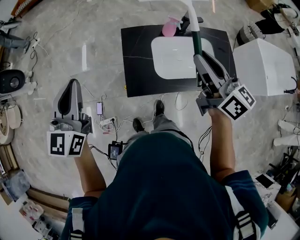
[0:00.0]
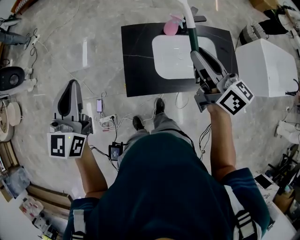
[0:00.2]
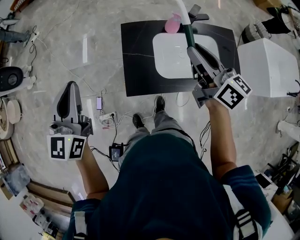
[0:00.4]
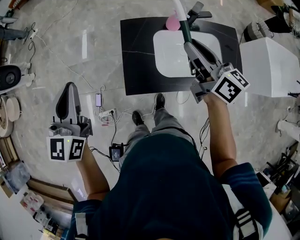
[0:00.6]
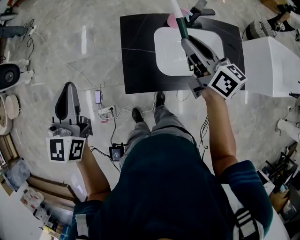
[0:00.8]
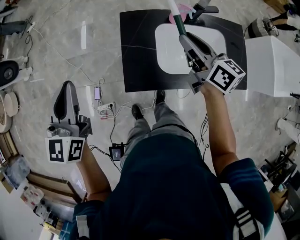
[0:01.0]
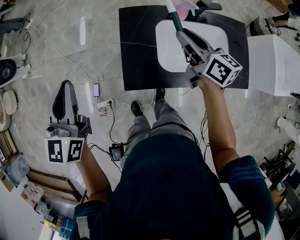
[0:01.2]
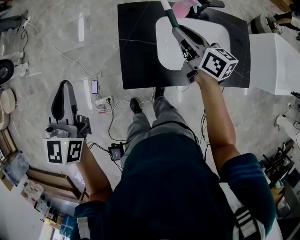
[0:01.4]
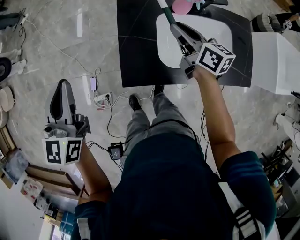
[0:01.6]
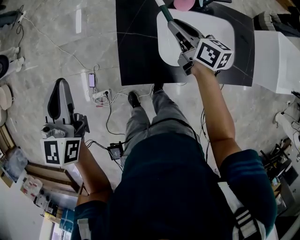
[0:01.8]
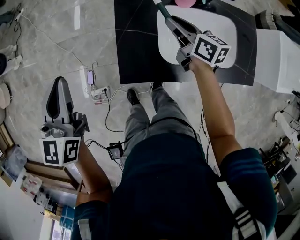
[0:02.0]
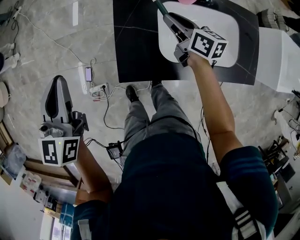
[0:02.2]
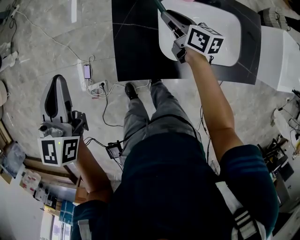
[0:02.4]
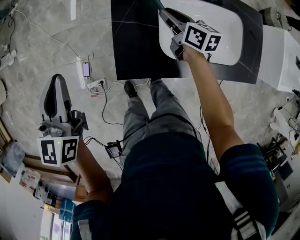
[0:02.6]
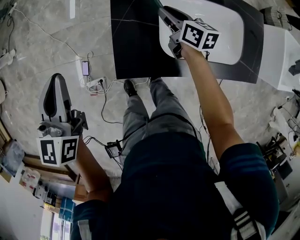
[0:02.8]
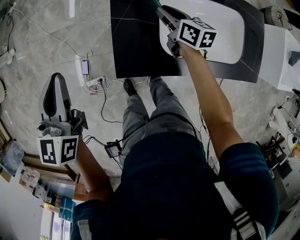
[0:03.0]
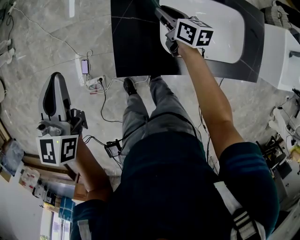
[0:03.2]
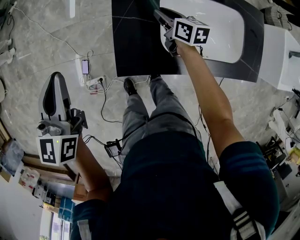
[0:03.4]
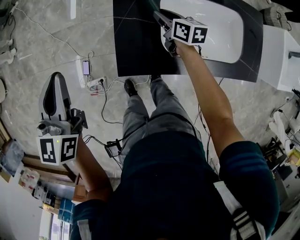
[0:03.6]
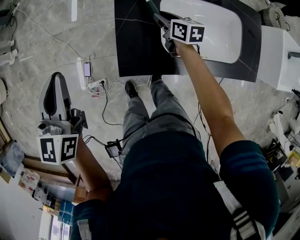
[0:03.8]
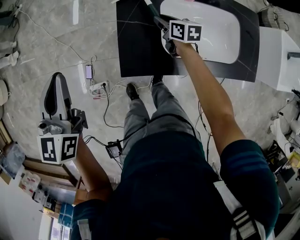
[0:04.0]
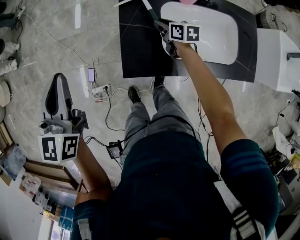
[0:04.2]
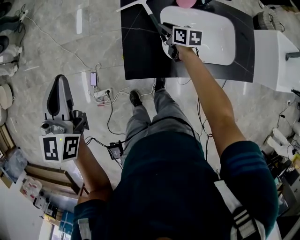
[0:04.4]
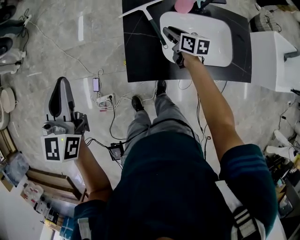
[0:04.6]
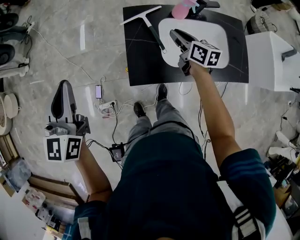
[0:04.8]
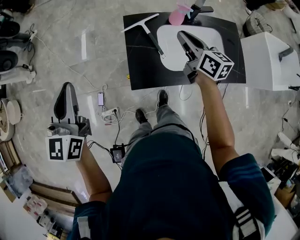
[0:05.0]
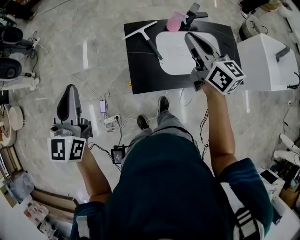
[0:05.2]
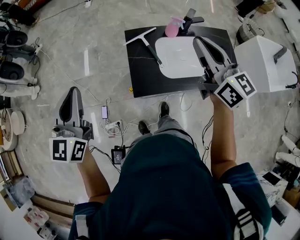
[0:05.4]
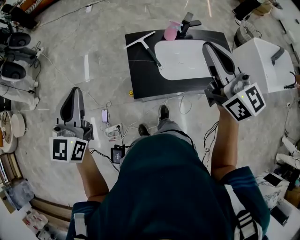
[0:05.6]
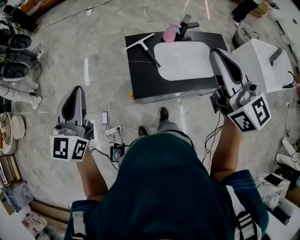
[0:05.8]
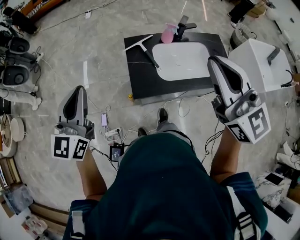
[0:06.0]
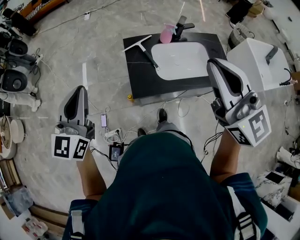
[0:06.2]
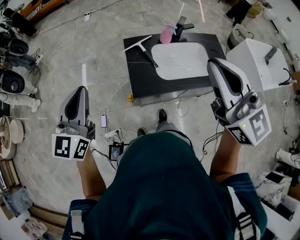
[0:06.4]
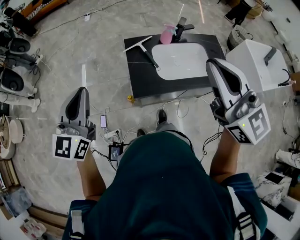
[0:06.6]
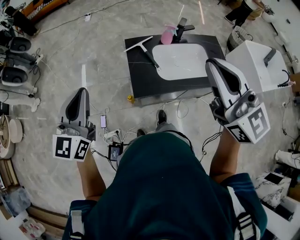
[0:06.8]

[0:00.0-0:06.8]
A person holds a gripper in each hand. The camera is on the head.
0:00.0 to 0:01.4: The right gripper travels downward and forward by about 25 cm; the left gripper travels downward by some 5 cm.
0:01.4 to 0:02.8: The left gripper moves downward, approximately 5 cm. Meanwhile the right gripper heads downward, covering about 15 cm.
0:02.8 to 0:04.0: The right gripper travels downward by some 5 cm.
0:04.0 to 0:05.4: The left gripper moves upward and backward, about 15 cm. Meanwhile the right gripper heads upward, covering about 40 cm, and points its fingers approximately 40 degrees further upward.
0:05.4 to 0:06.8: The left gripper shifts approximately 5 cm backward. The right gripper goes approximately 20 cm backward and upward, and swivels about 20 degrees.

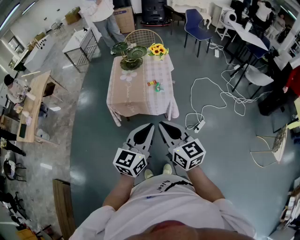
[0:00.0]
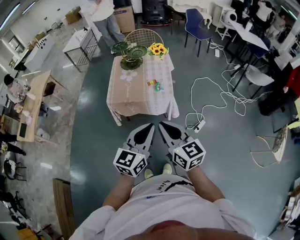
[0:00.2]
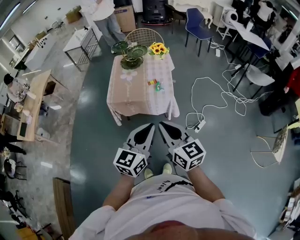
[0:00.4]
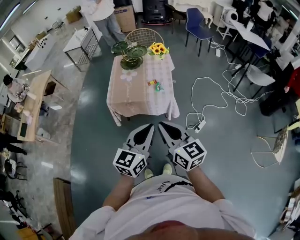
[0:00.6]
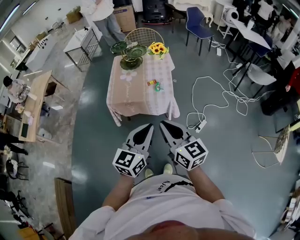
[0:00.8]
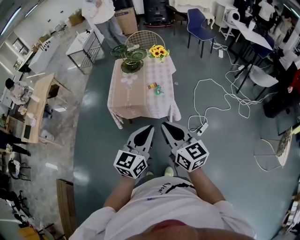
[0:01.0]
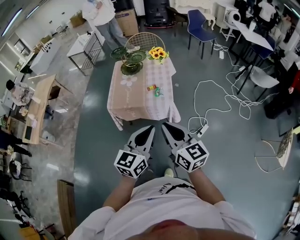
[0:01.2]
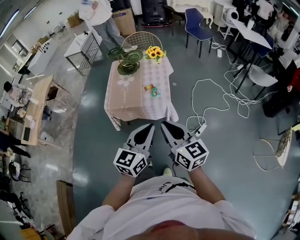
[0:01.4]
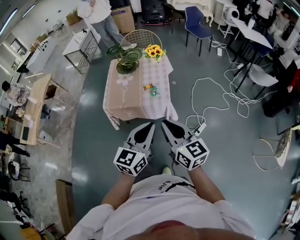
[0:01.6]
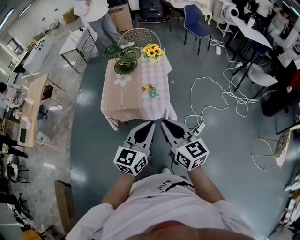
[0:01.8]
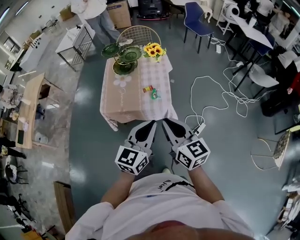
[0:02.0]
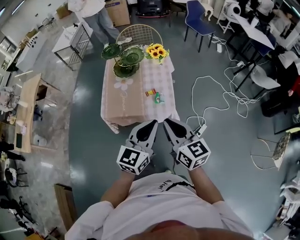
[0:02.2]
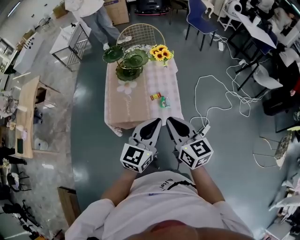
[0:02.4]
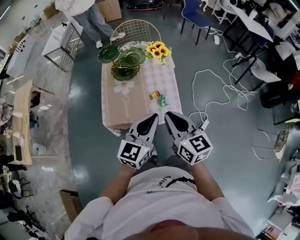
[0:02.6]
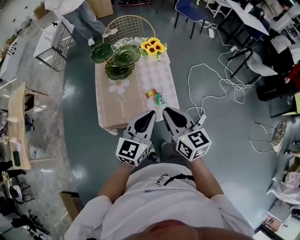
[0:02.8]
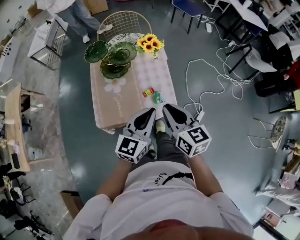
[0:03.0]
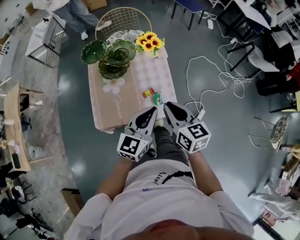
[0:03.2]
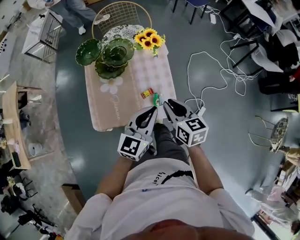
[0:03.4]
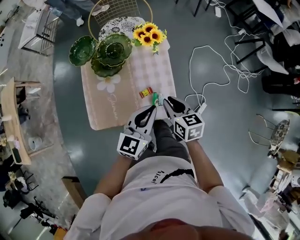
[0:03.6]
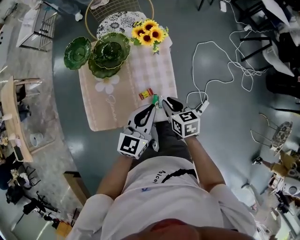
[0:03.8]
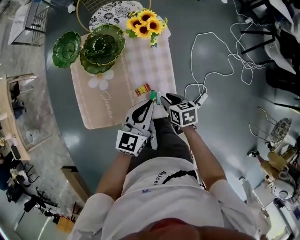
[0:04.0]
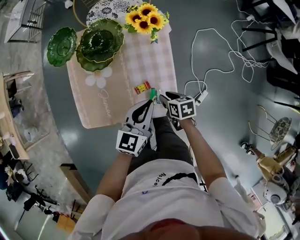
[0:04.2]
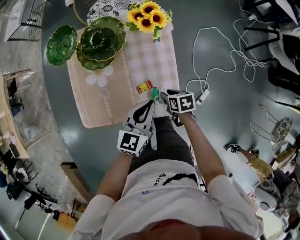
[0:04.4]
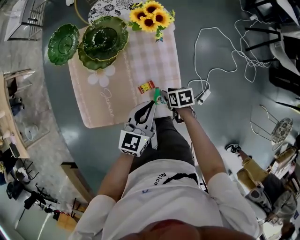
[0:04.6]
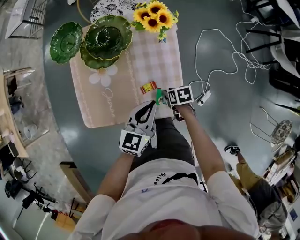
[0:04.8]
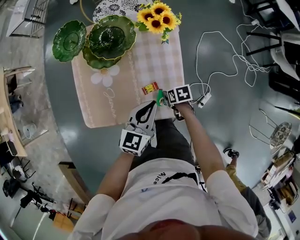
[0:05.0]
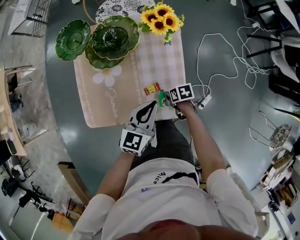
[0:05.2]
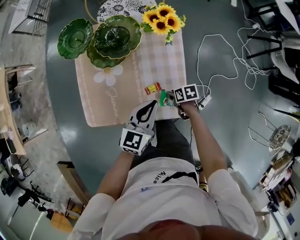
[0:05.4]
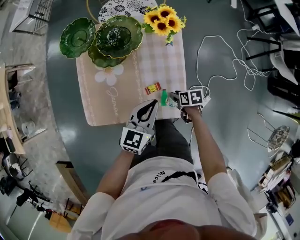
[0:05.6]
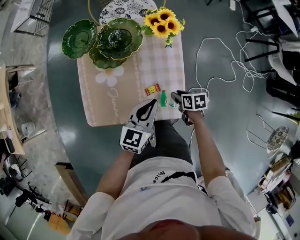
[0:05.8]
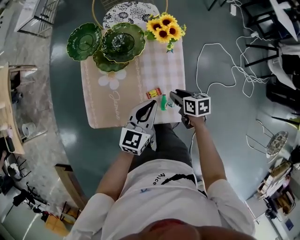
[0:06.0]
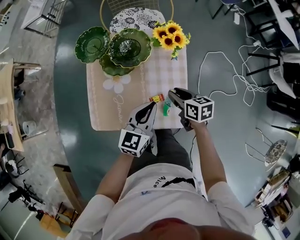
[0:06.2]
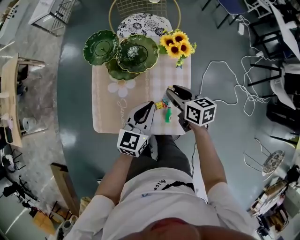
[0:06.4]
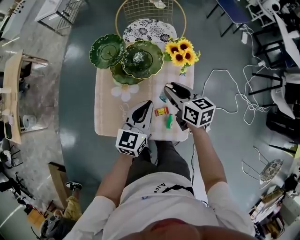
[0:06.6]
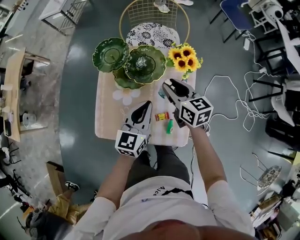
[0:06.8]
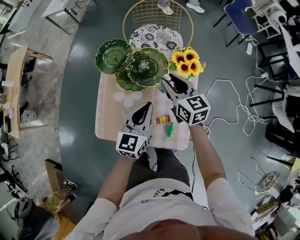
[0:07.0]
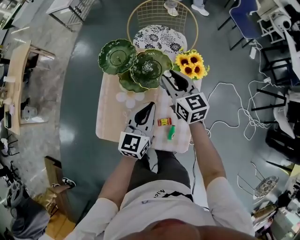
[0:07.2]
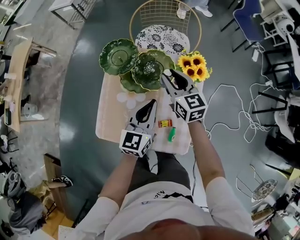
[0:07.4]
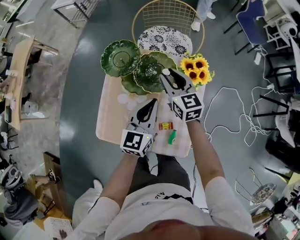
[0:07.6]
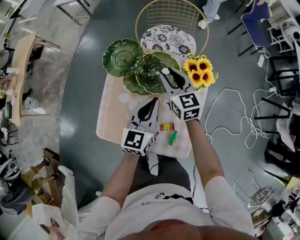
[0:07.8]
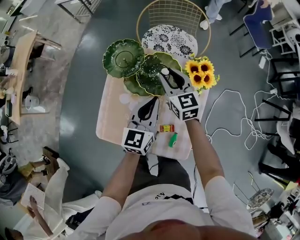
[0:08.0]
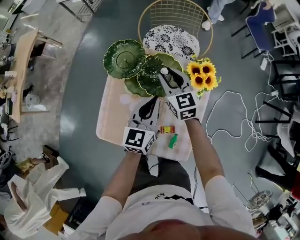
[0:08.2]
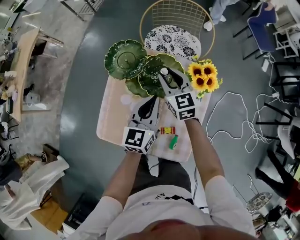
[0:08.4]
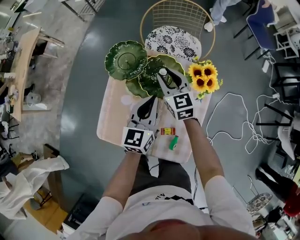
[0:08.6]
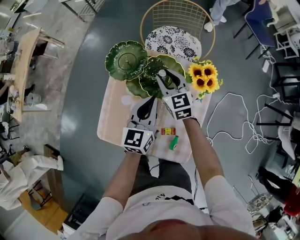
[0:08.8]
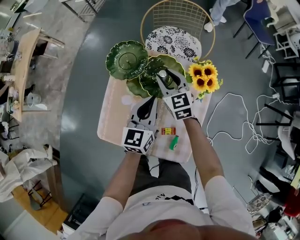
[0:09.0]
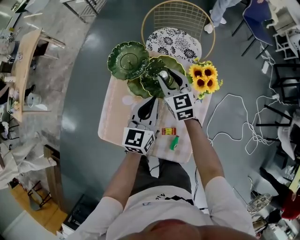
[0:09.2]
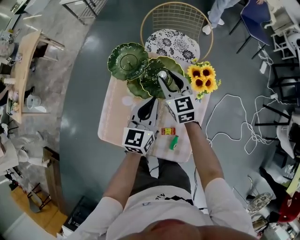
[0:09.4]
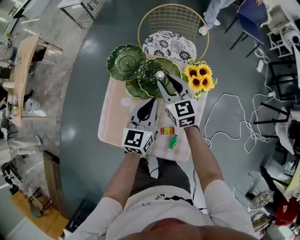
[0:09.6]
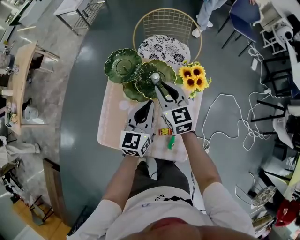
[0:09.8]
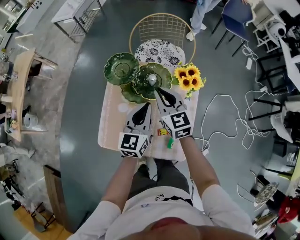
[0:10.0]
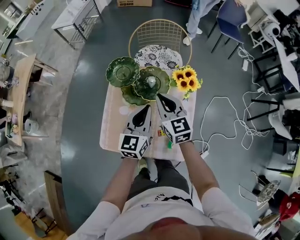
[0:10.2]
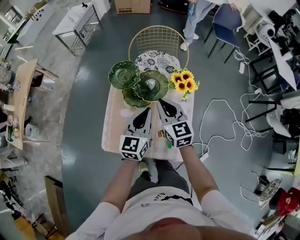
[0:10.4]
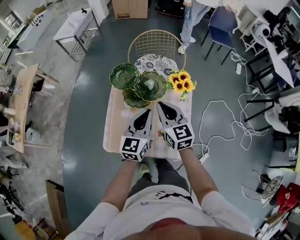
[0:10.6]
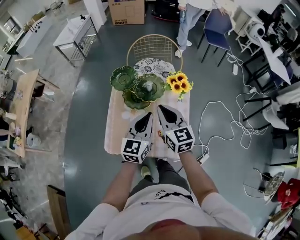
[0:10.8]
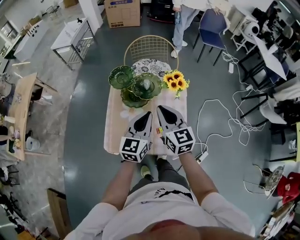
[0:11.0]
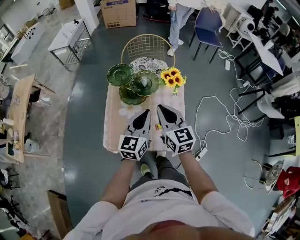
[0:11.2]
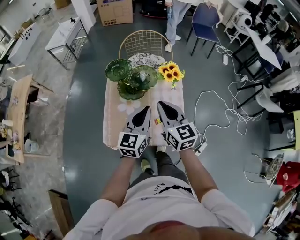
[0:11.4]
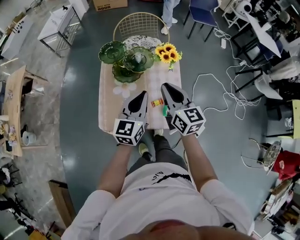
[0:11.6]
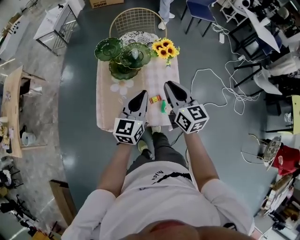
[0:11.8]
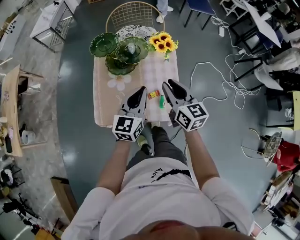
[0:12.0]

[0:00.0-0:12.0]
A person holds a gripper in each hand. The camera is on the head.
0:00.0 to 0:01.6: The grippers both shift to the right and forward by roughly 10 cm.
0:01.6 to 0:03.0: The grippers both shift forward by some 30 cm.
0:03.0 to 0:04.4: The left gripper goes approximately 25 cm downward and forward, while the right gripper goes about 40 cm downward, tips its fingers downward by about 40 degrees, and opens.
0:04.4 to 0:06.0: The left gripper changes place by some 5 cm, while the right gripper heads upward and forward, covering about 10 cm.
0:06.0 to 0:07.6: The left gripper travels forward and to the left by roughly 15 cm, and swivels approximately 20 degrees. The right gripper moves forward, upward and to the left, some 35 cm, and tips its fingers upward by approximately 30 degrees.
0:07.6 to 0:09.0: The left gripper changes place by some 5 cm. Meanwhile the right gripper shifts by roughly 5 cm.
0:09.0 to 0:10.4: The left gripper travels upward and backward by roughly 10 cm, while the right gripper moves backward and upward, some 20 cm, and closes.
0:10.4 to 0:12.0: The right gripper heads backward and to the right, covering about 20 cm; the left gripper goes about 10 cm backward.

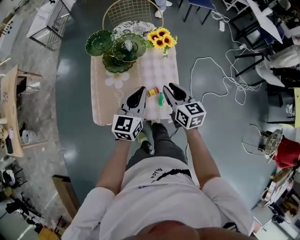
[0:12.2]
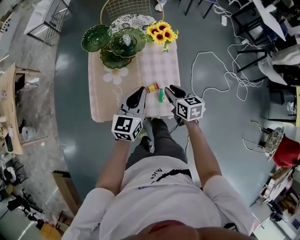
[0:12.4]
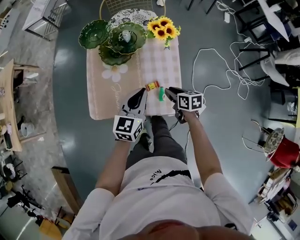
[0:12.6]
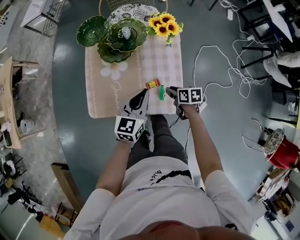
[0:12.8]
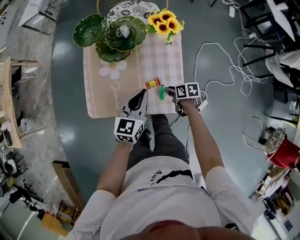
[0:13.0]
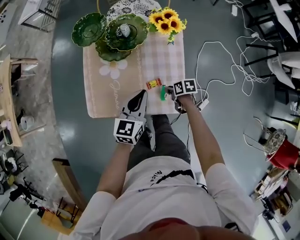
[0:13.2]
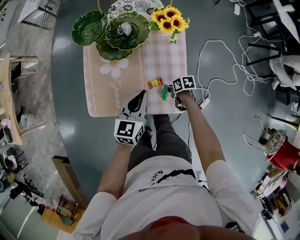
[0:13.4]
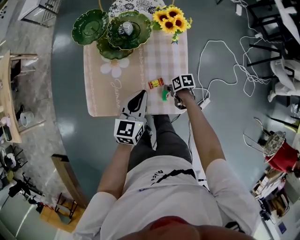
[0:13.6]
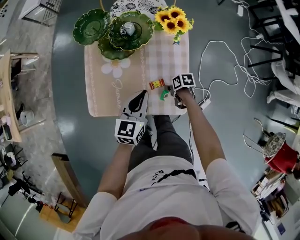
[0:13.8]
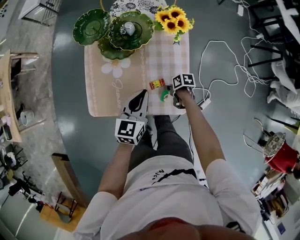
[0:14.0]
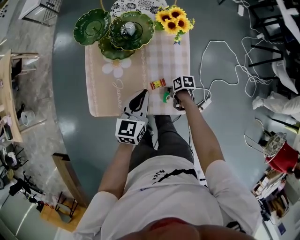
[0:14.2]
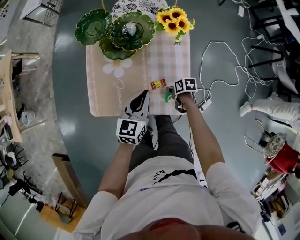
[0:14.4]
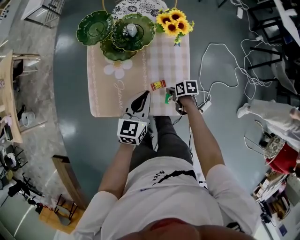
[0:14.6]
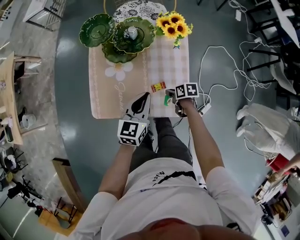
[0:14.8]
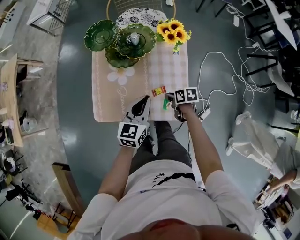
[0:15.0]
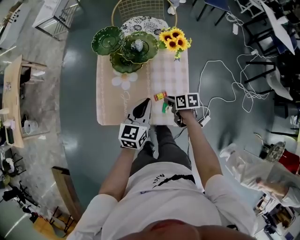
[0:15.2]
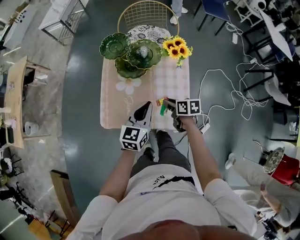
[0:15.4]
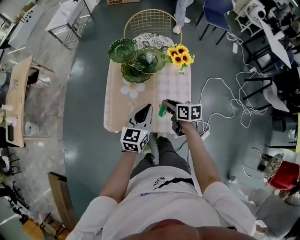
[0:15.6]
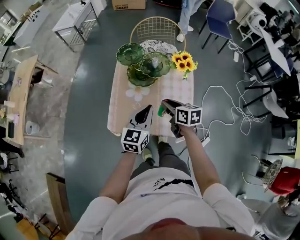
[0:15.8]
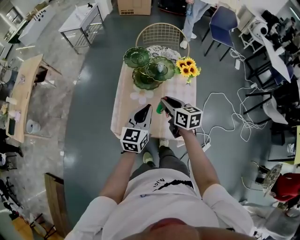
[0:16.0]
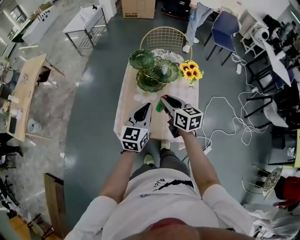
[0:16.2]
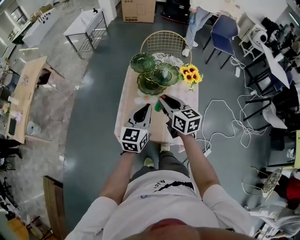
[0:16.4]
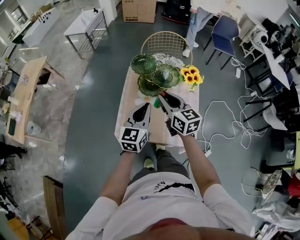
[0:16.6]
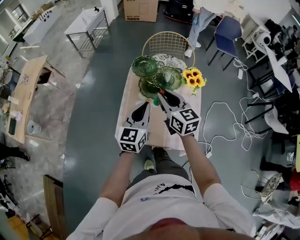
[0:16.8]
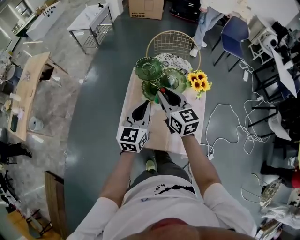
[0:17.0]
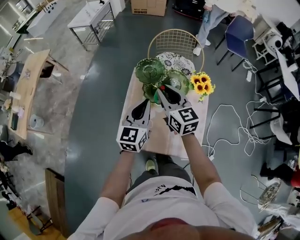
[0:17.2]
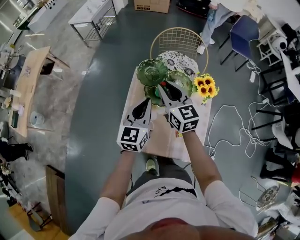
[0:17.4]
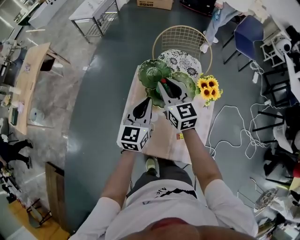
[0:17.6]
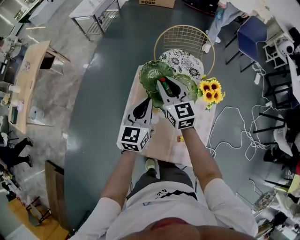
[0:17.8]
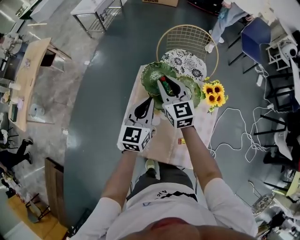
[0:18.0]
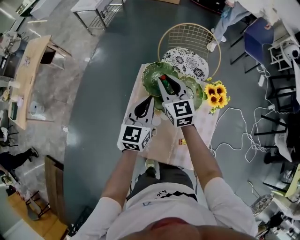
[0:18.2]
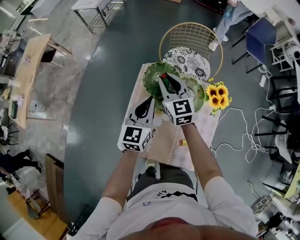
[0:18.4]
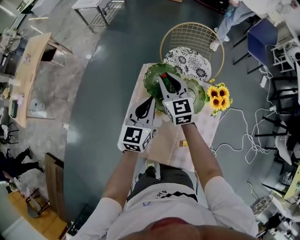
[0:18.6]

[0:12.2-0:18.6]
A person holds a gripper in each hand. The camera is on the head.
0:12.2 to 0:13.8: The left gripper heads downward, covering roughly 15 cm. The right gripper travels downward by approximately 35 cm, and angles its fingers downward, by some 40 degrees.
0:13.8 to 0:15.4: The left gripper is displaced upward by about 5 cm. The right gripper shifts roughly 20 cm upward, and rotates about 30 degrees.
0:15.4 to 0:17.0: The left gripper shifts approximately 20 cm to the left, upward and forward, while the right gripper moves upward, to the left and forward, about 35 cm, and angles its fingers upward, by roughly 30 degrees.
0:17.0 to 0:18.6: The two grippers go approximately 20 cm forward and downward.
